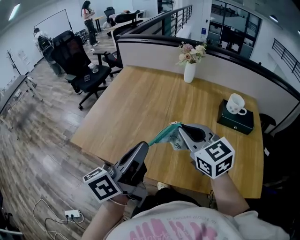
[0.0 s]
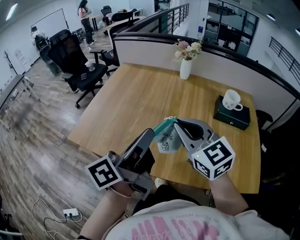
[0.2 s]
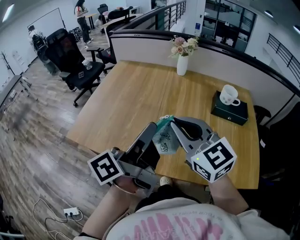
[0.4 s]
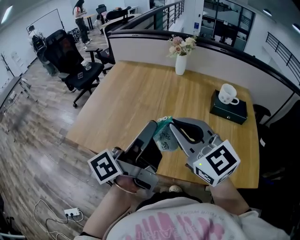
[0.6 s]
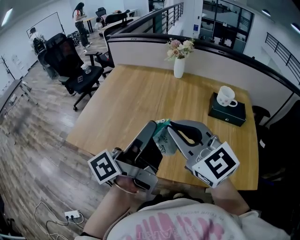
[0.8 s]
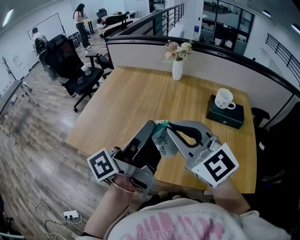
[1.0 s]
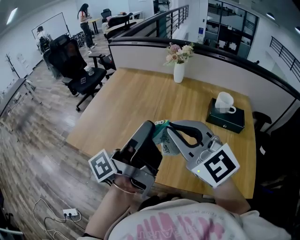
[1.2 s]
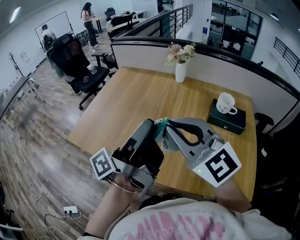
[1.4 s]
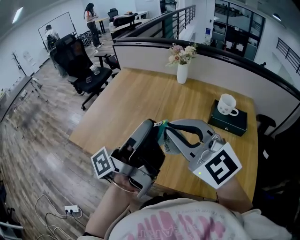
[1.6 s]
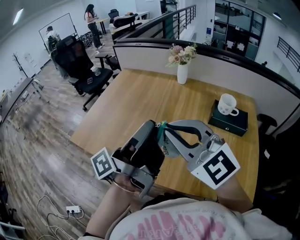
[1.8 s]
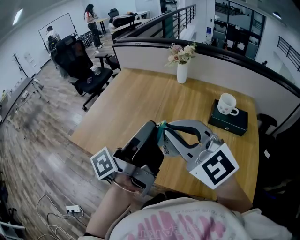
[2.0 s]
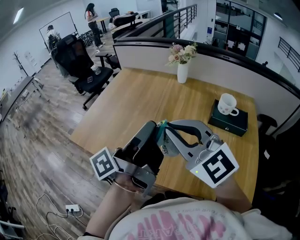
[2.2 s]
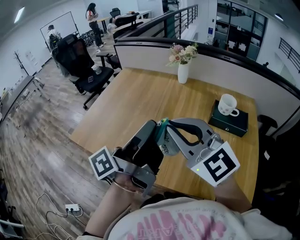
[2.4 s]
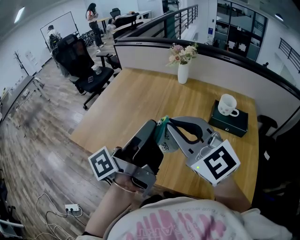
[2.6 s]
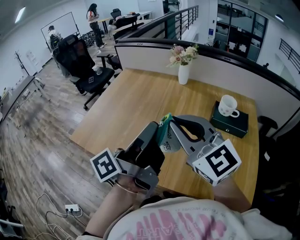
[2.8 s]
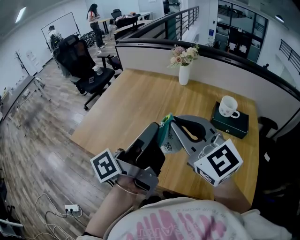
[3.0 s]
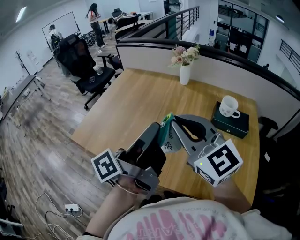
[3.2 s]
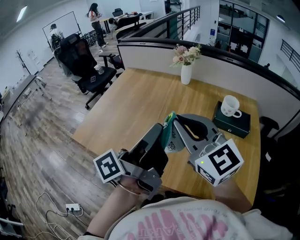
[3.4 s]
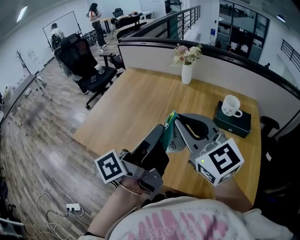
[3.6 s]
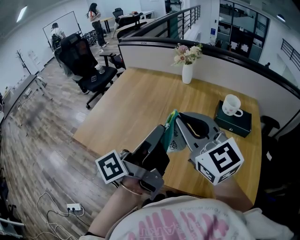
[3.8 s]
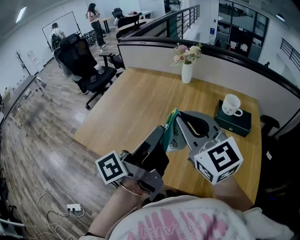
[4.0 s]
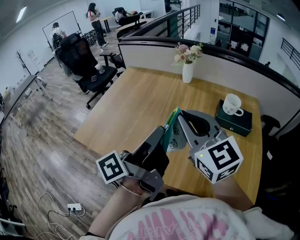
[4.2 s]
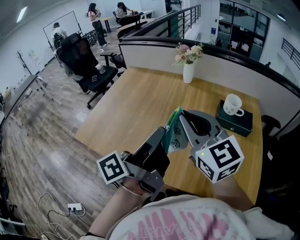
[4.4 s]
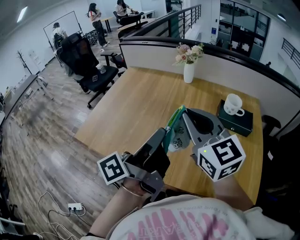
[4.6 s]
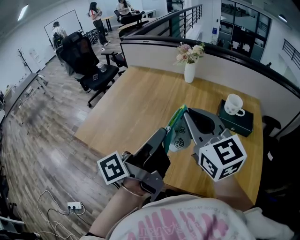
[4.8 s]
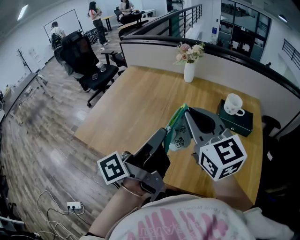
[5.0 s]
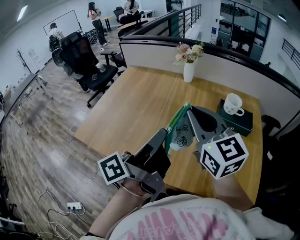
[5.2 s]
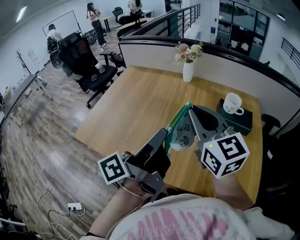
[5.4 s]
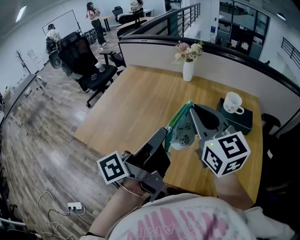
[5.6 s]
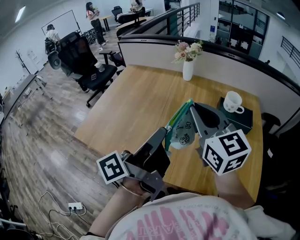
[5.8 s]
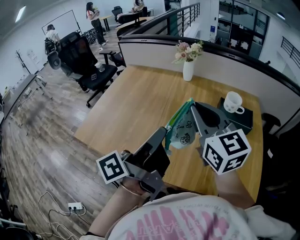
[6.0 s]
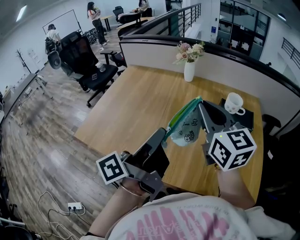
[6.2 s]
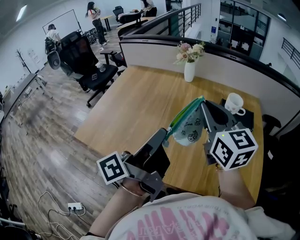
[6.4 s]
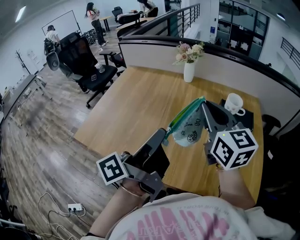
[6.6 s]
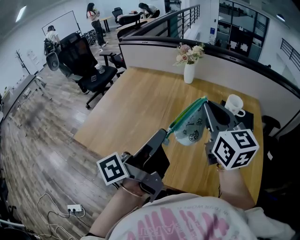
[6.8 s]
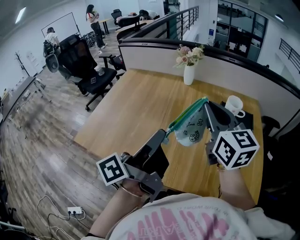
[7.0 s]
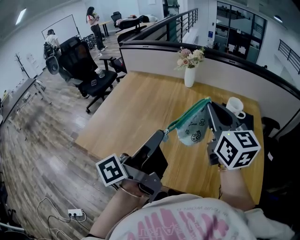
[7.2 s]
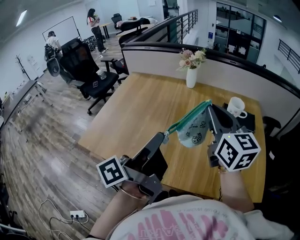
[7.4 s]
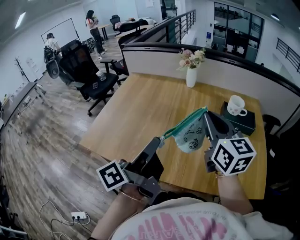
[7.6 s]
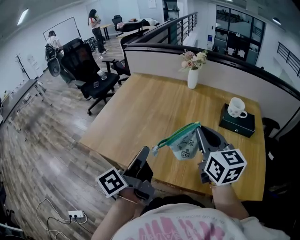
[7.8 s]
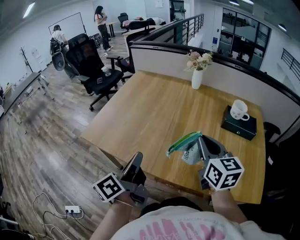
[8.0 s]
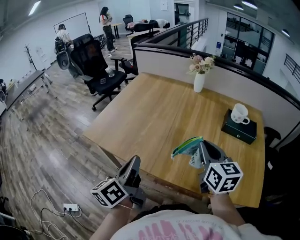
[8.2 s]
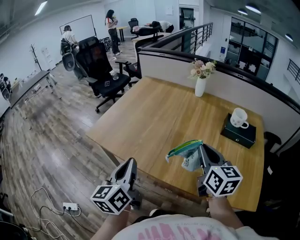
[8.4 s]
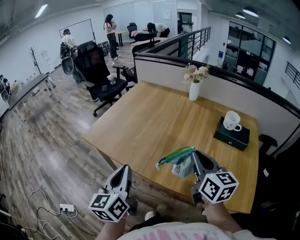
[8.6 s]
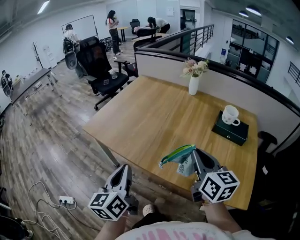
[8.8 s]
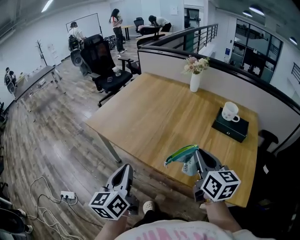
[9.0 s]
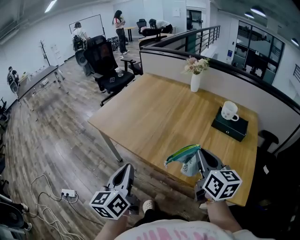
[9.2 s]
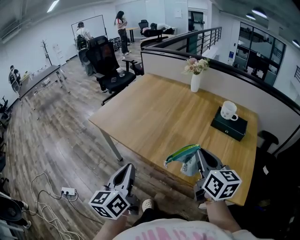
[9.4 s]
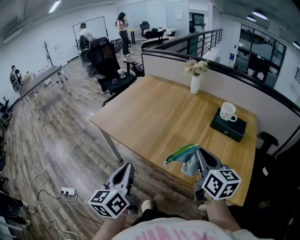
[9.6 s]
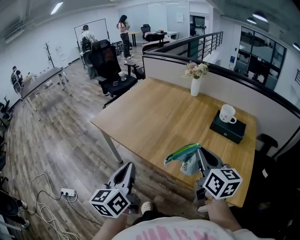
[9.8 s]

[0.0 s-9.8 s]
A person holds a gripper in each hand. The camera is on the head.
0.0 to 1.4 s: The right gripper heads upward and backward, covering roughly 15 cm, and swivels about 30 degrees. Meanwhile the left gripper travels to the right and upward by approximately 10 cm, rotates some 40 degrees, and opens its fingers.
1.4 to 2.8 s: The left gripper closes.
2.8 to 4.2 s: The grippers make only small movements.
4.2 to 5.6 s: The grippers stay close to where they were, moving slightly.
5.6 to 7.0 s: The grippers stay close to where they were, moving slightly.
7.0 to 8.4 s: The left gripper moves to the left, backward and downward, roughly 20 cm, and twists roughly 50 degrees clockwise, seen from behind. The right gripper goes approximately 15 cm downward and backward.
8.4 to 9.8 s: The grippers both shift backward and to the right by approximately 15 cm.

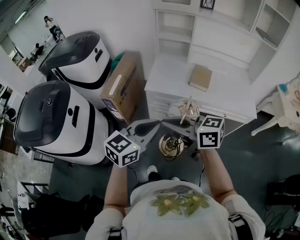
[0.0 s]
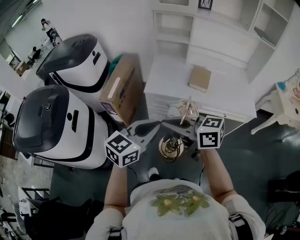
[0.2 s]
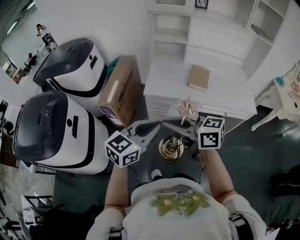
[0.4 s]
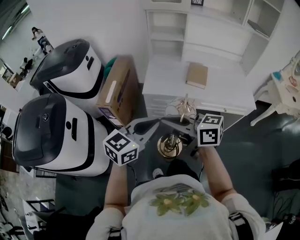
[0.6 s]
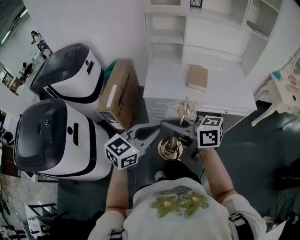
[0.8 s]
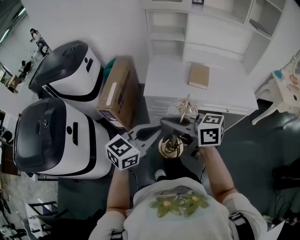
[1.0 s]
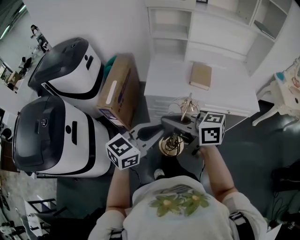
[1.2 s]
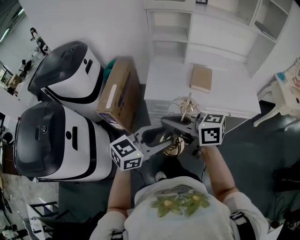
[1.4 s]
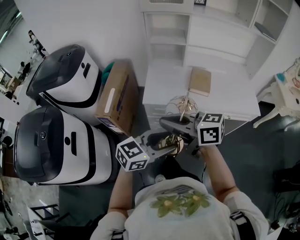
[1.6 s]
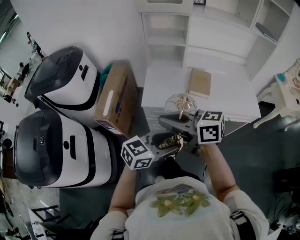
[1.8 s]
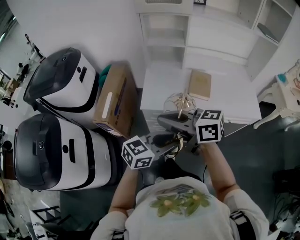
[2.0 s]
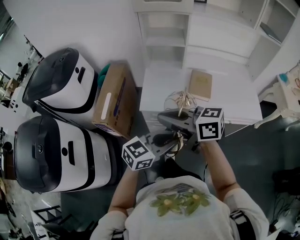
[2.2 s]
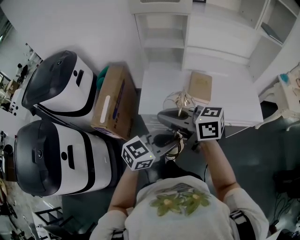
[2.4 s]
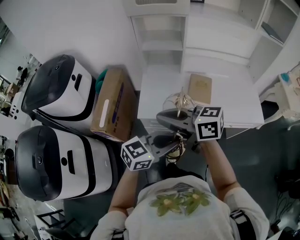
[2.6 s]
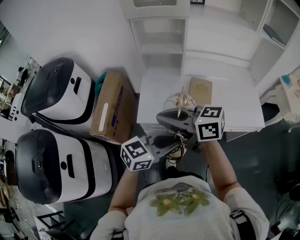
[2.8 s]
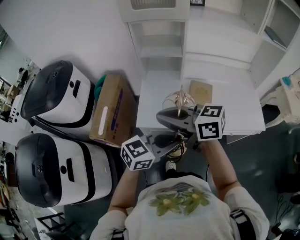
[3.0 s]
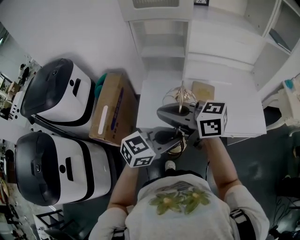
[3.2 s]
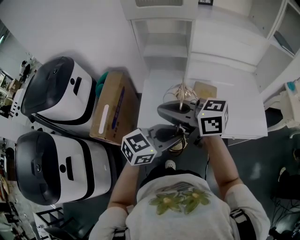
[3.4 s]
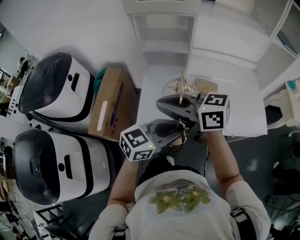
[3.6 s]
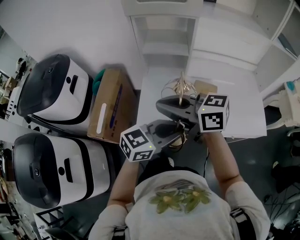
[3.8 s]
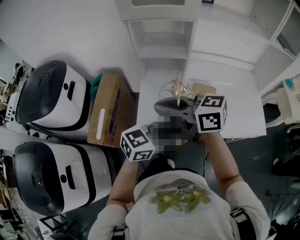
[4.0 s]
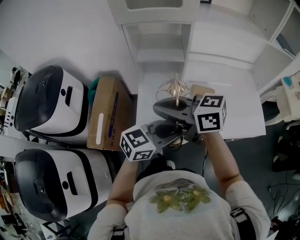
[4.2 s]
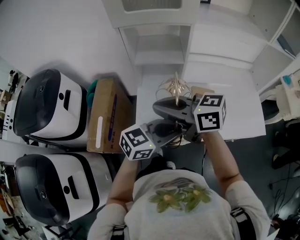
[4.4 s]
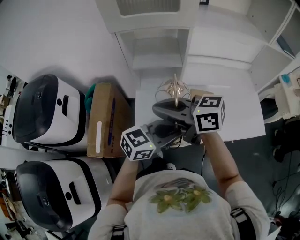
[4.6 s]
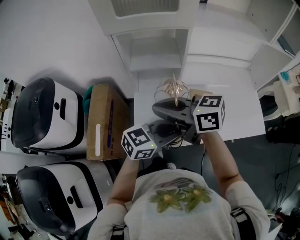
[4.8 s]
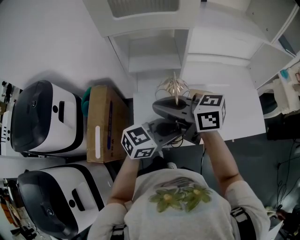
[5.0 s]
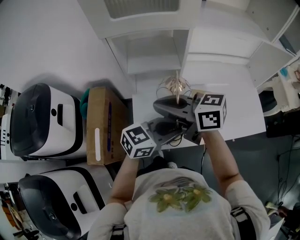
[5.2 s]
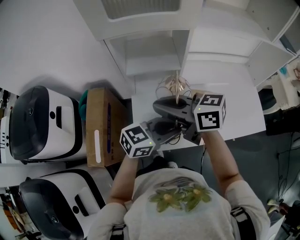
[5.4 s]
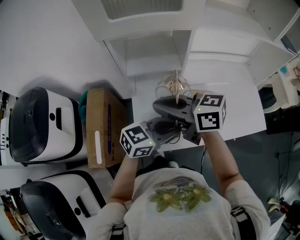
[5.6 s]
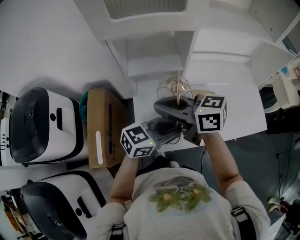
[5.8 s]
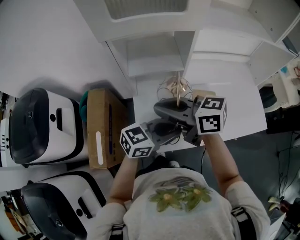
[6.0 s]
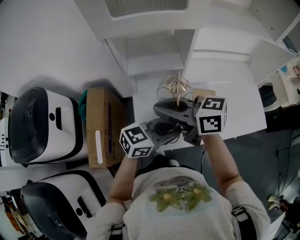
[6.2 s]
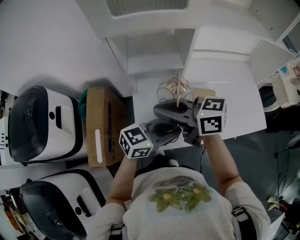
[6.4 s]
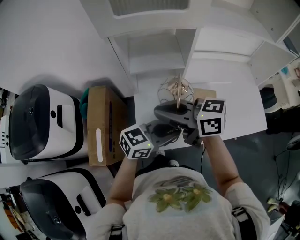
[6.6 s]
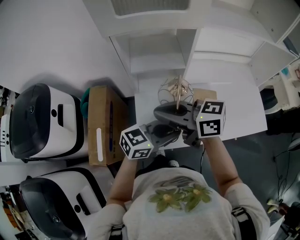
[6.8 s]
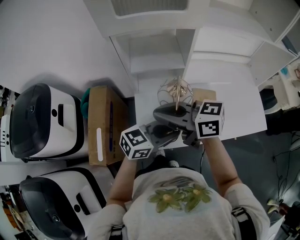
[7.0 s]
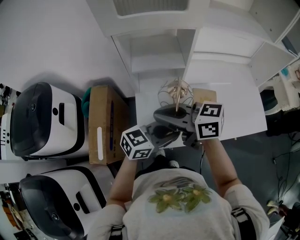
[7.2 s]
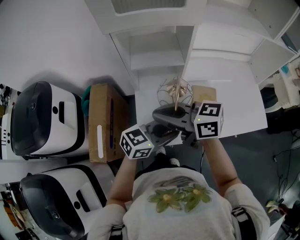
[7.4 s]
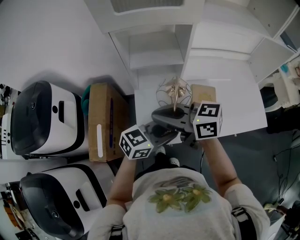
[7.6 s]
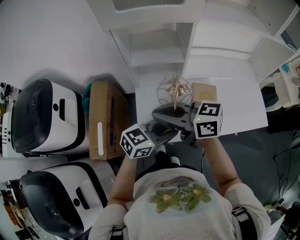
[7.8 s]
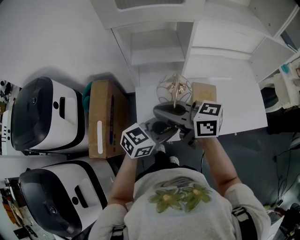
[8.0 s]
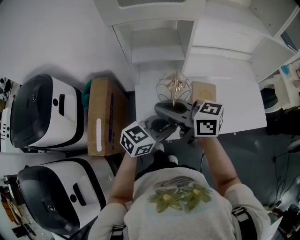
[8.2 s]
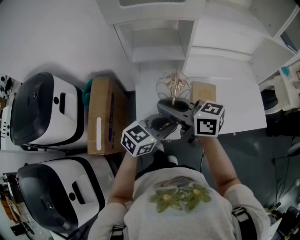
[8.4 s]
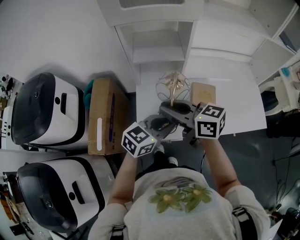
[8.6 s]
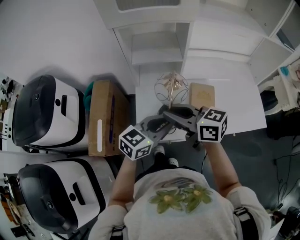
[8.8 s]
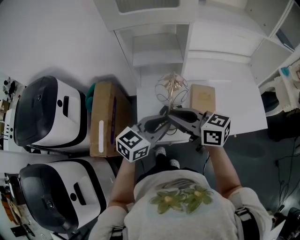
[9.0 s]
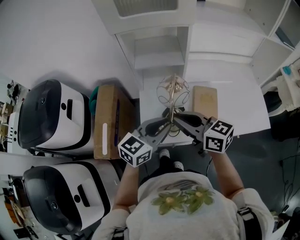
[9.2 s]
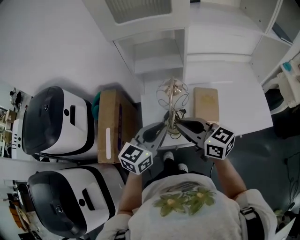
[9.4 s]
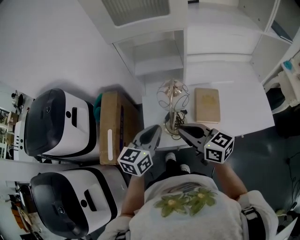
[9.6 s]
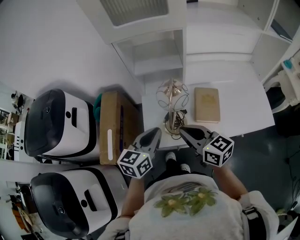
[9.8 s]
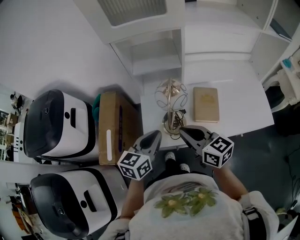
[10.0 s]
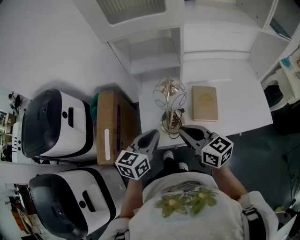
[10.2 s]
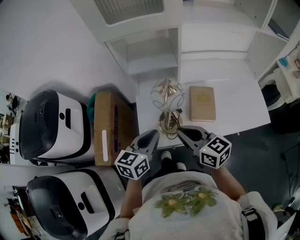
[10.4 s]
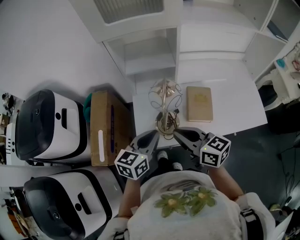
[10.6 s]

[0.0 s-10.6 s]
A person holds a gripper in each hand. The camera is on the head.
0.0 to 1.6 s: The right gripper changes place by some 15 cm. Meanwhile the left gripper moves approximately 10 cm, changes its angle by roughly 20 degrees, and opens.
1.6 to 3.0 s: The right gripper changes place by approximately 20 cm. Meanwhile the left gripper ends up about 20 cm from where it was, and closes its fingers.
3.0 to 4.6 s: The left gripper moves roughly 15 cm, while the right gripper moves some 15 cm.
4.6 to 6.0 s: The left gripper changes place by approximately 5 cm; the right gripper changes place by approximately 10 cm.
6.0 to 7.6 s: The right gripper changes place by roughly 5 cm.
7.6 to 9.0 s: The right gripper ends up roughly 5 cm from where it was.
9.0 to 10.6 s: The right gripper changes place by roughly 5 cm.

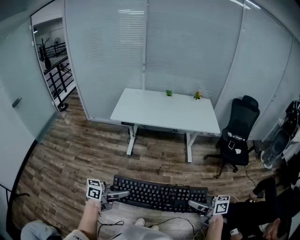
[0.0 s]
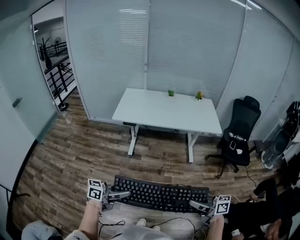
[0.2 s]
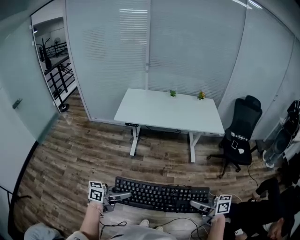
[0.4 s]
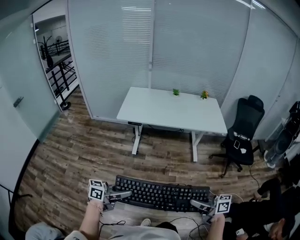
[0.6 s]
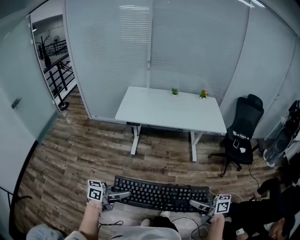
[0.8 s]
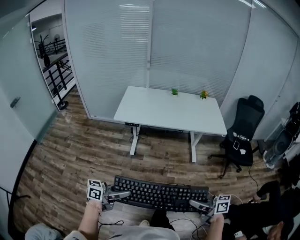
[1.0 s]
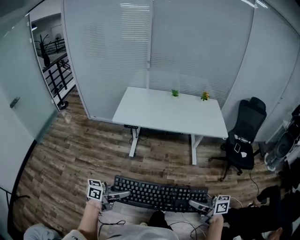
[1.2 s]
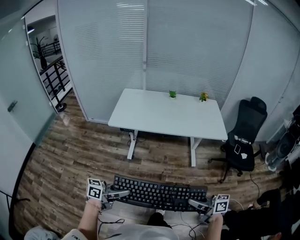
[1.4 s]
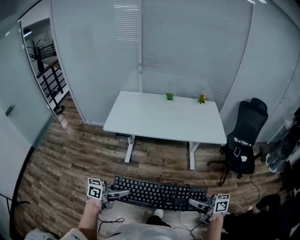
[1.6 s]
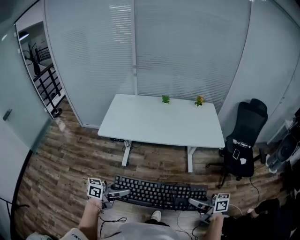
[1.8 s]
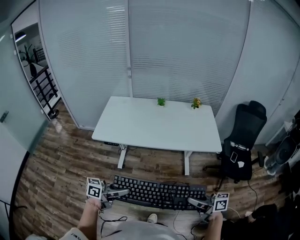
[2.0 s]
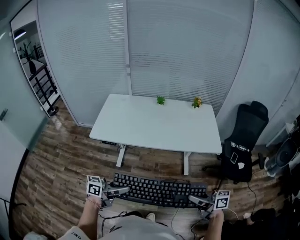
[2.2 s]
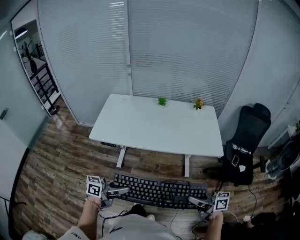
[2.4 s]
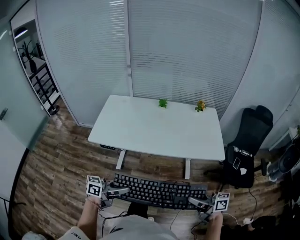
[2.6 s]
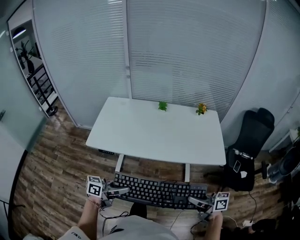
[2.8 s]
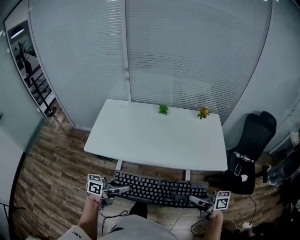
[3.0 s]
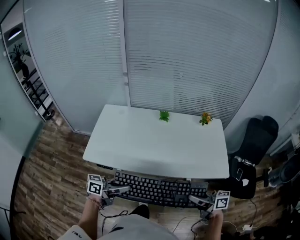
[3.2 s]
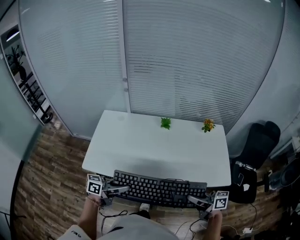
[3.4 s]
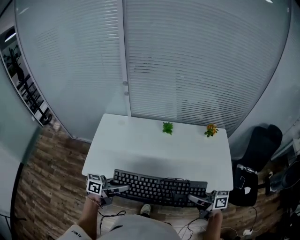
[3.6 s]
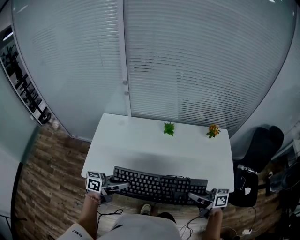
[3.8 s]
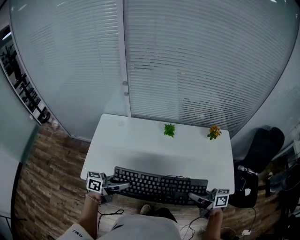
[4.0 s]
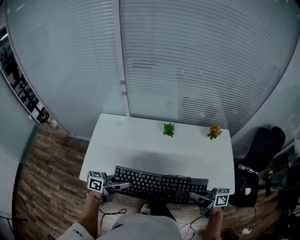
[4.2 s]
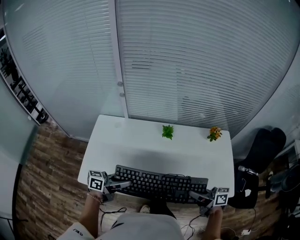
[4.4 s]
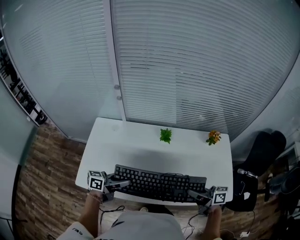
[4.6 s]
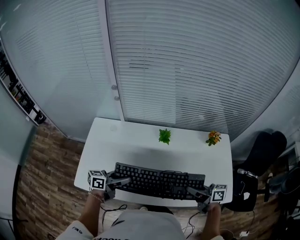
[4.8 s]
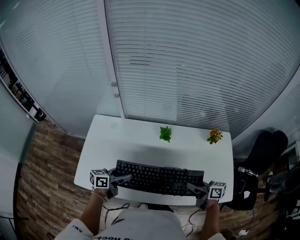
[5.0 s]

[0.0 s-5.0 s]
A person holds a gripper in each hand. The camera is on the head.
0.0 to 1.6 s: The left gripper ends up approximately 20 cm from where it was. The right gripper shifts by about 20 cm.
1.6 to 3.4 s: The pair of grippers is taken some 40 cm.
3.4 to 5.0 s: The right gripper moves approximately 25 cm. Meanwhile the left gripper moves some 25 cm.
